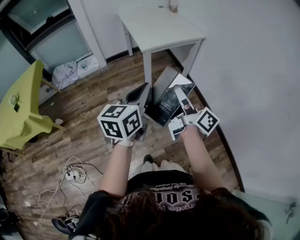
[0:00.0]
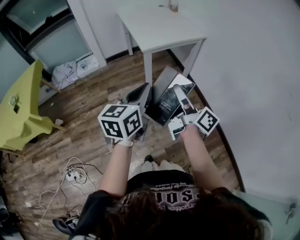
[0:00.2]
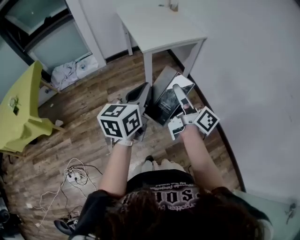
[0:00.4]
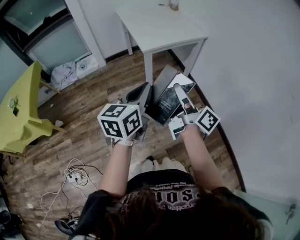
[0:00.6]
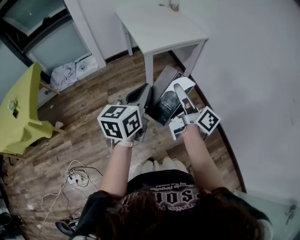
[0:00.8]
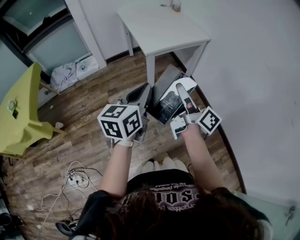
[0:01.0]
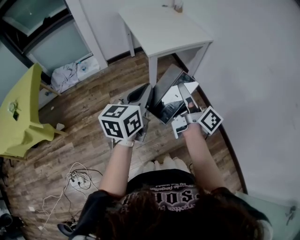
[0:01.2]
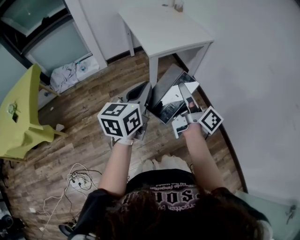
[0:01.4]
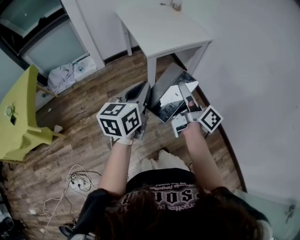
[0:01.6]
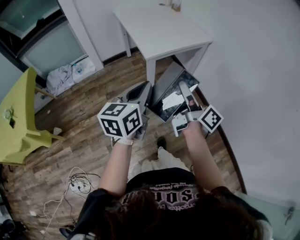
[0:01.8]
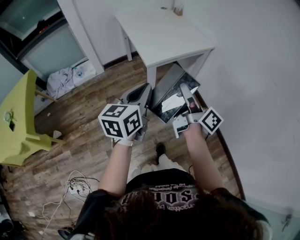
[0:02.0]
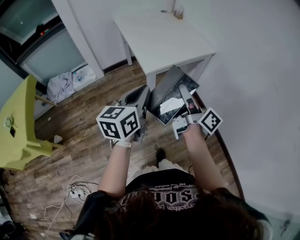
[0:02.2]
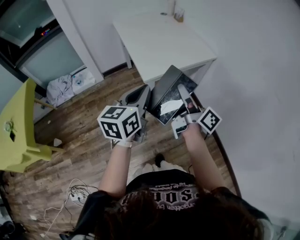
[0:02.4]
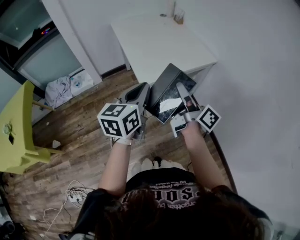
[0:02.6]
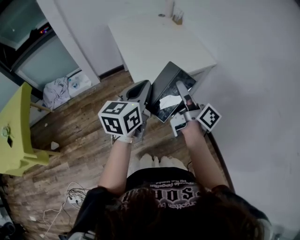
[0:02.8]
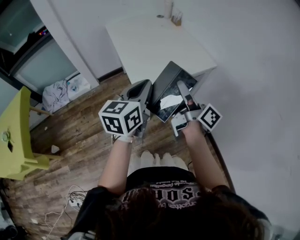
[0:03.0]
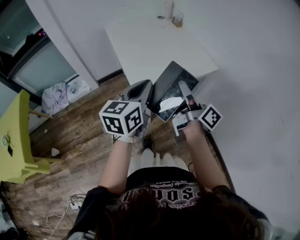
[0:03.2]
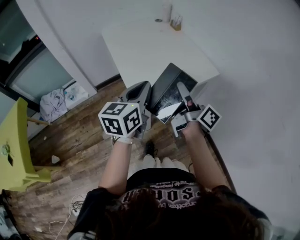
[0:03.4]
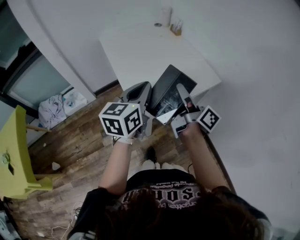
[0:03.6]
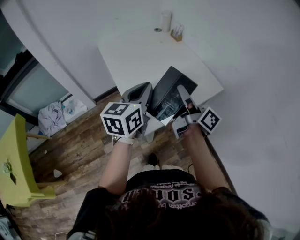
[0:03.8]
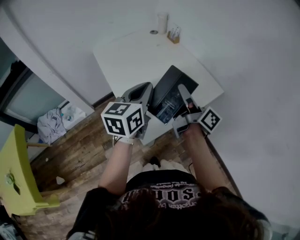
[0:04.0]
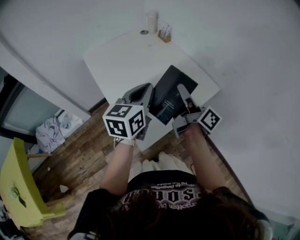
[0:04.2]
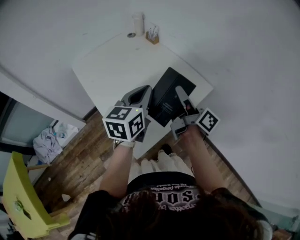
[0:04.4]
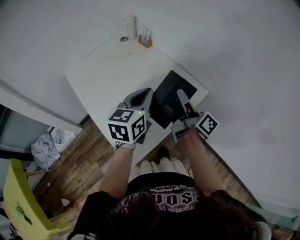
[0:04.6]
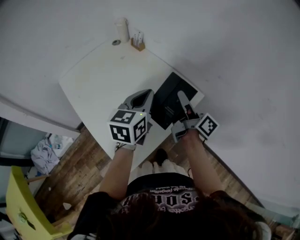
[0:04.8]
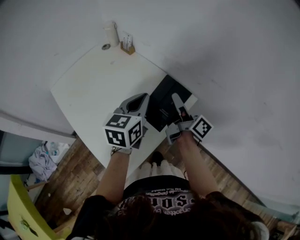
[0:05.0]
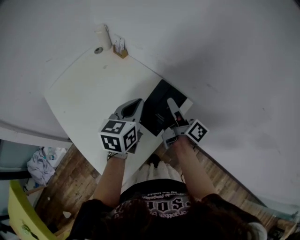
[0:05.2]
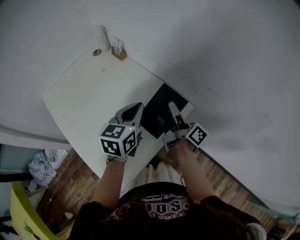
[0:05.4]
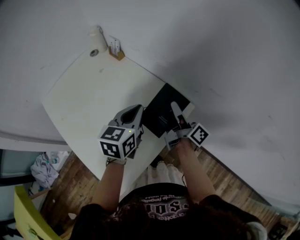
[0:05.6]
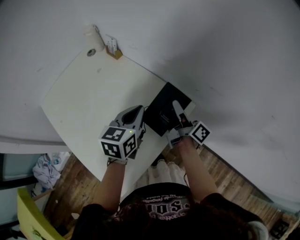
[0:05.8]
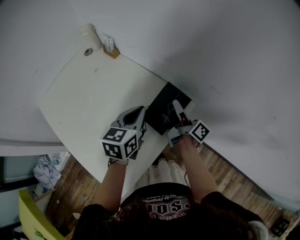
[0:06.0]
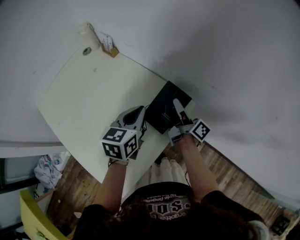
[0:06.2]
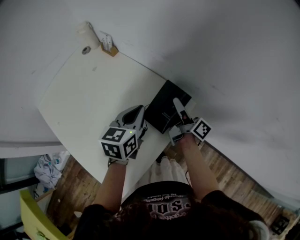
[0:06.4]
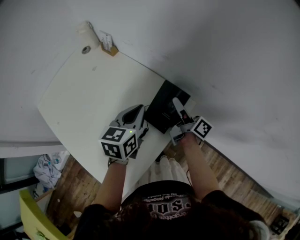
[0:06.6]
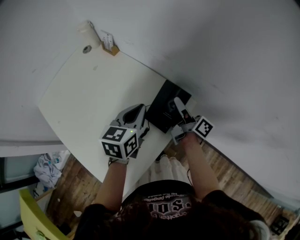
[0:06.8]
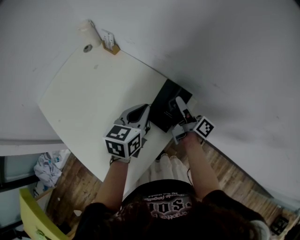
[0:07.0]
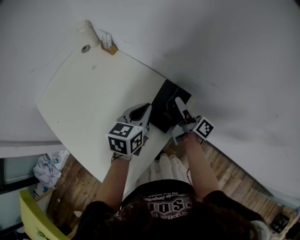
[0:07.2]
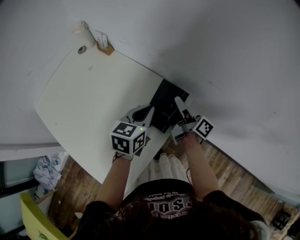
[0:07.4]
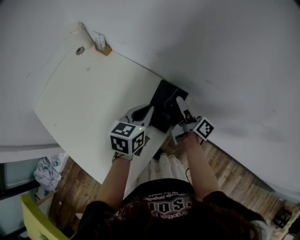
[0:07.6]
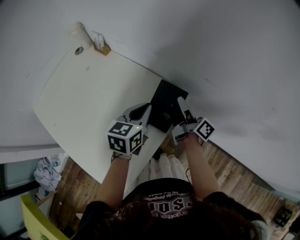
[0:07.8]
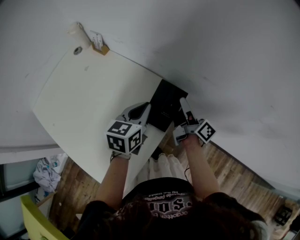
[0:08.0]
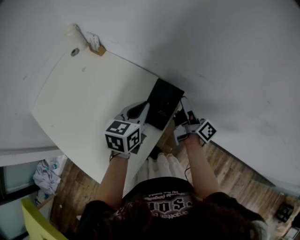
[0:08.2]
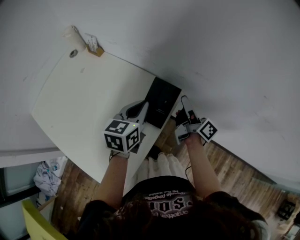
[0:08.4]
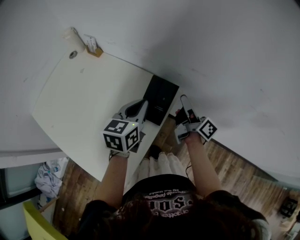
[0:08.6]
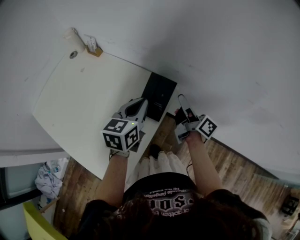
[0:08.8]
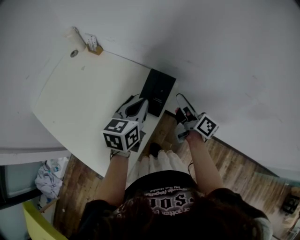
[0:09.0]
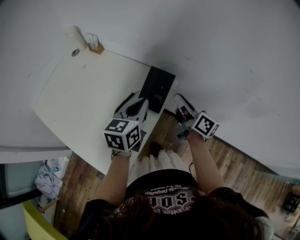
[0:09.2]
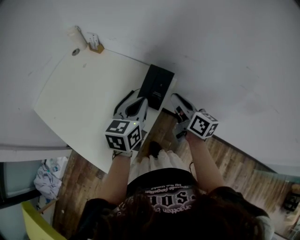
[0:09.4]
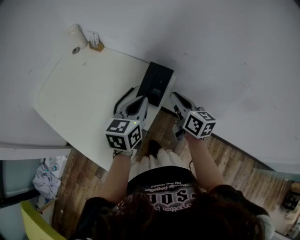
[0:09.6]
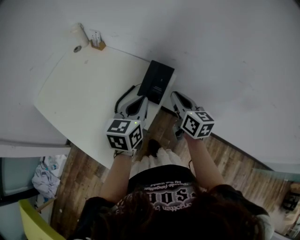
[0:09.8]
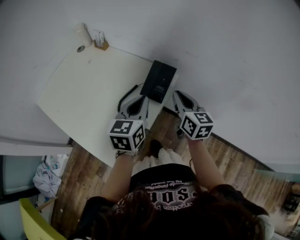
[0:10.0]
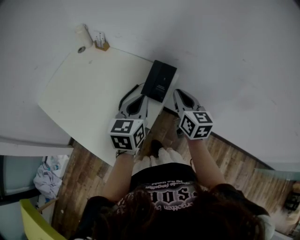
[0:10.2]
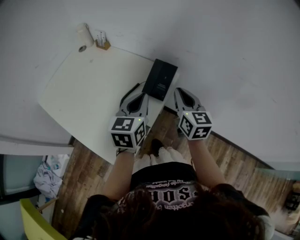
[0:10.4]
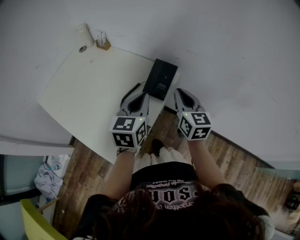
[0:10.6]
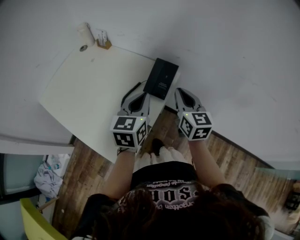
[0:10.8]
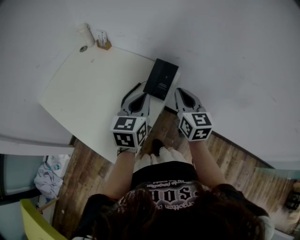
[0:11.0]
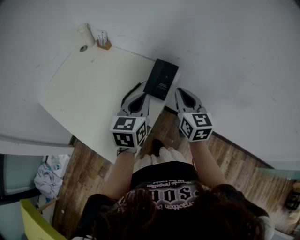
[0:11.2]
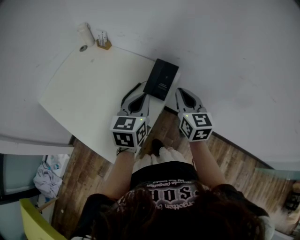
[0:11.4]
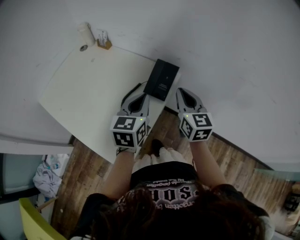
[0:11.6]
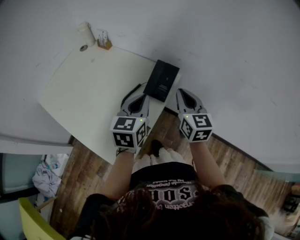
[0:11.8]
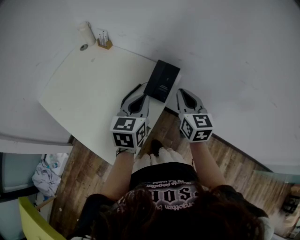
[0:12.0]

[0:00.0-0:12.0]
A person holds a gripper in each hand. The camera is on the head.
0:00.0 to 0:01.6: The right gripper heads forward, covering approximately 10 cm. The left gripper heads forward and to the left, covering roughly 10 cm.
0:01.6 to 0:03.0: The two grippers go approximately 30 cm forward.
0:03.0 to 0:04.4: The two grippers go about 30 cm forward.
0:04.4 to 0:06.0: The left gripper shifts some 20 cm forward, to the right and downward; the right gripper shifts some 25 cm forward, downward and to the right.
0:06.0 to 0:07.6: The left gripper moves to the right, approximately 5 cm.
0:07.6 to 0:09.0: The right gripper moves backward, upward and to the right, about 10 cm, and closes up; the left gripper moves backward, some 5 cm.
0:09.0 to 0:10.4: The left gripper moves backward, roughly 5 cm, while the right gripper moves backward and upward, roughly 10 cm, rotates around the line of its fingers by about 50 degrees, counterclockwise from behind, and closes up.
0:10.4 to 0:12.0: The grippers make only small movements.

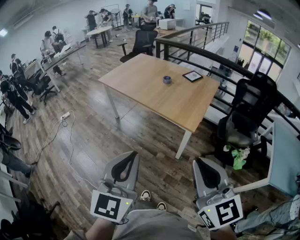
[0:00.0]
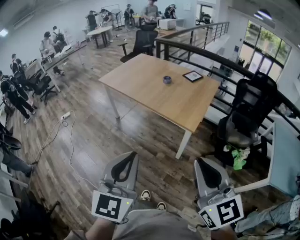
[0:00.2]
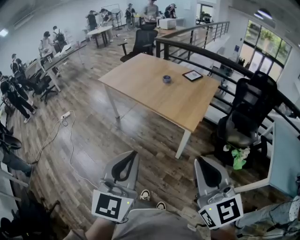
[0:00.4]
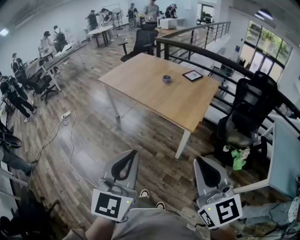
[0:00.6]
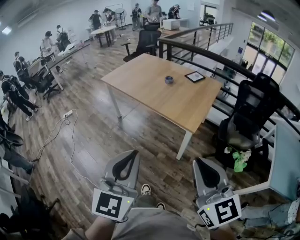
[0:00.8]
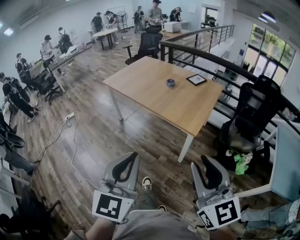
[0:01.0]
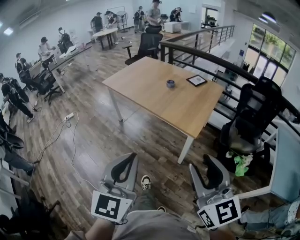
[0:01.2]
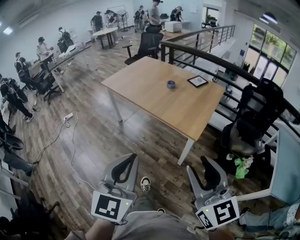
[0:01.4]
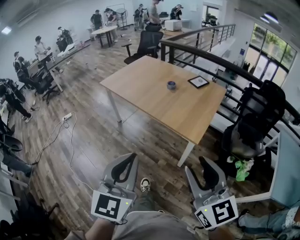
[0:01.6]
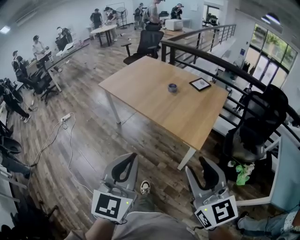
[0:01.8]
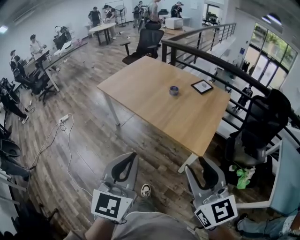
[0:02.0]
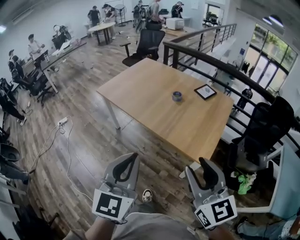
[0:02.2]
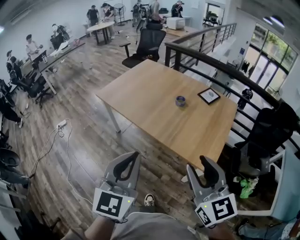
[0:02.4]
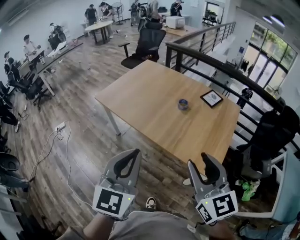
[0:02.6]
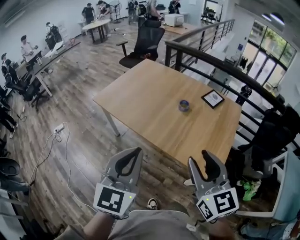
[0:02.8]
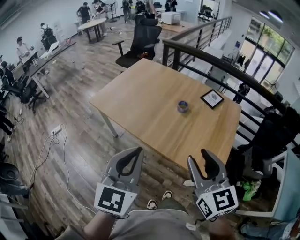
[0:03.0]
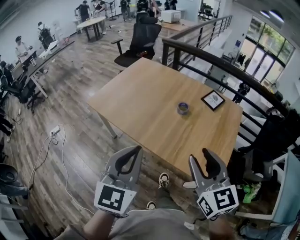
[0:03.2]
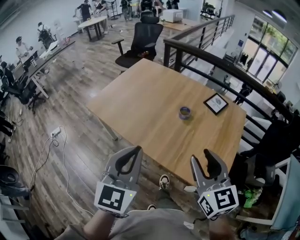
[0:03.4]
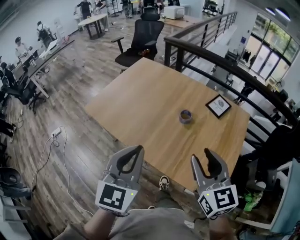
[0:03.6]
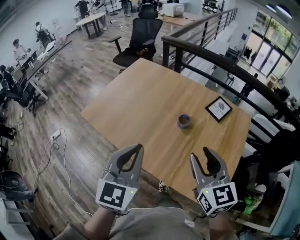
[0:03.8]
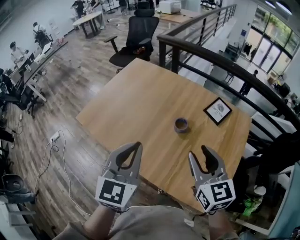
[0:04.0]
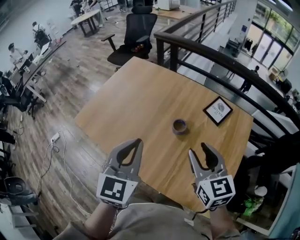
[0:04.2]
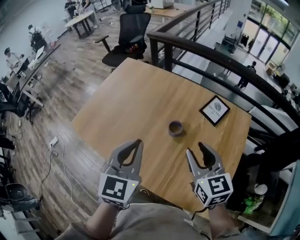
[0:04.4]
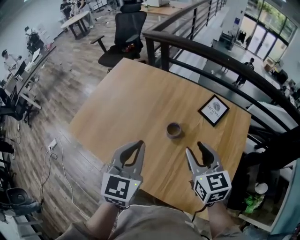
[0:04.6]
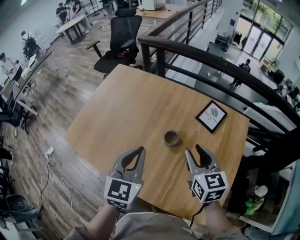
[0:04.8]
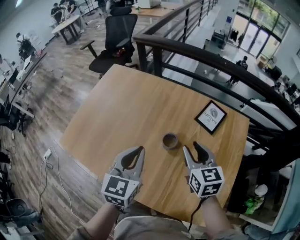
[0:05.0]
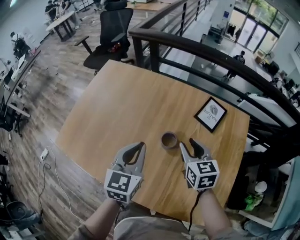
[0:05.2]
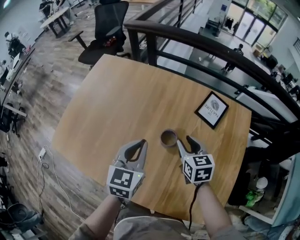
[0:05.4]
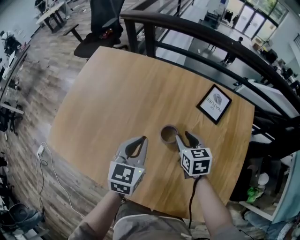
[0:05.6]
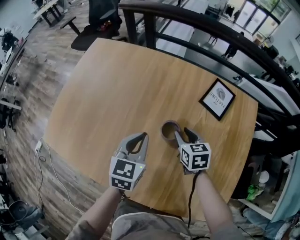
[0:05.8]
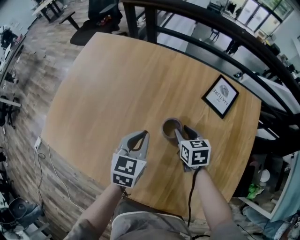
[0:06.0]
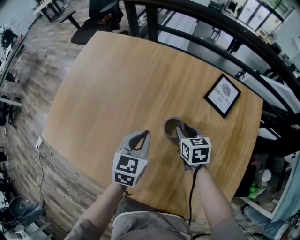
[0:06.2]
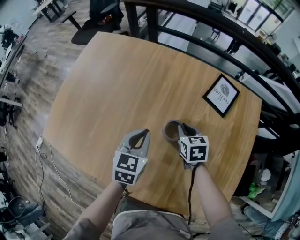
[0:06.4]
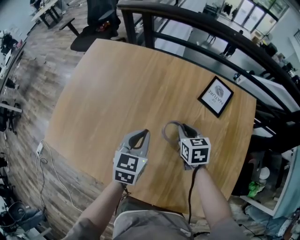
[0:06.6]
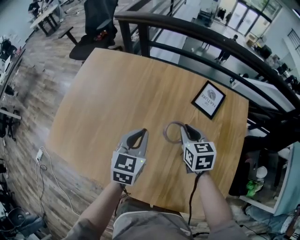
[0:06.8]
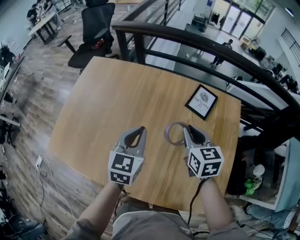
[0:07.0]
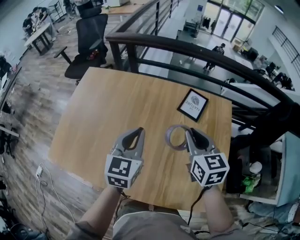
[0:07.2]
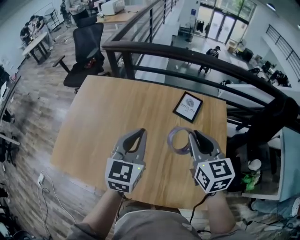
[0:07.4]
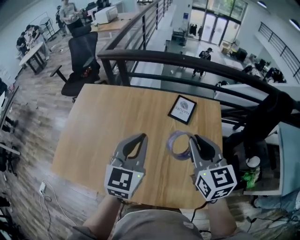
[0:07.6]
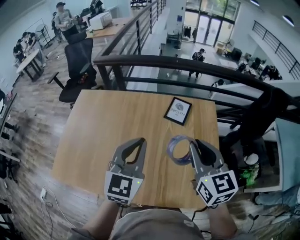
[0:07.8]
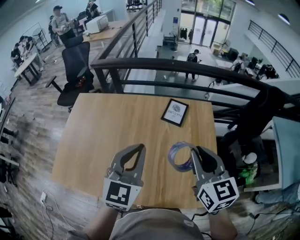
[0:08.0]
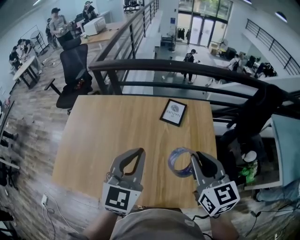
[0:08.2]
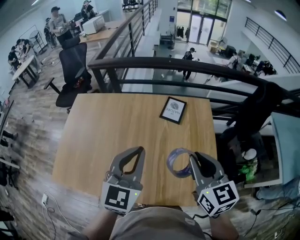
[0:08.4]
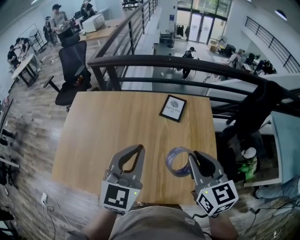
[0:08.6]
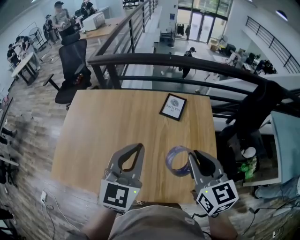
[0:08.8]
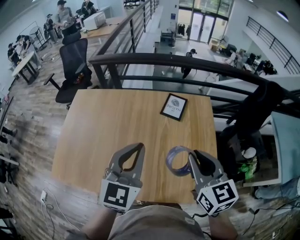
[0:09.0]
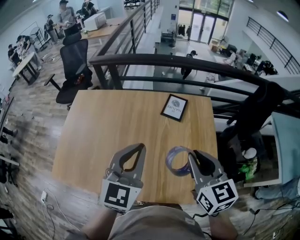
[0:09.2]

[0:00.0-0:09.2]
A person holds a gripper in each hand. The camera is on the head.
0:00.0 to 0:01.6: The grippers both shift forward by approximately 10 cm. The right gripper opens.
0:01.6 to 0:03.0: The pair of grippers is taken forward, approximately 40 cm.
0:03.0 to 0:04.6: The grippers both shift forward by about 35 cm.
0:04.6 to 0:06.2: The two grippers go some 30 cm downward and forward. The right gripper swivels approximately 30 degrees; the left gripper swivels about 20 degrees.
0:06.2 to 0:07.6: The grippers both shift upward by roughly 35 cm. The right gripper angles its fingers upward, by some 30 degrees. The left gripper turns by some 30 degrees.
0:07.6 to 0:09.2: The grippers both shift backward by some 5 cm.

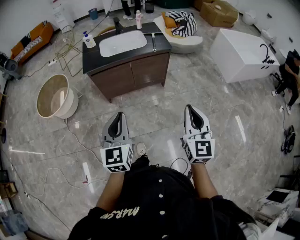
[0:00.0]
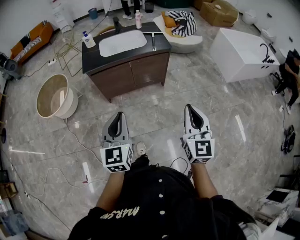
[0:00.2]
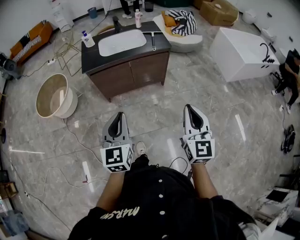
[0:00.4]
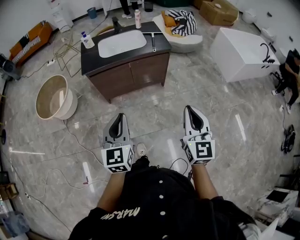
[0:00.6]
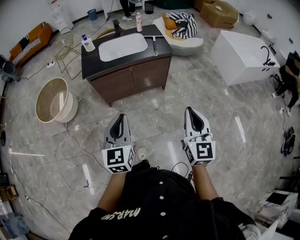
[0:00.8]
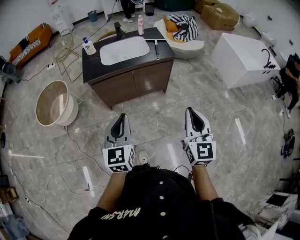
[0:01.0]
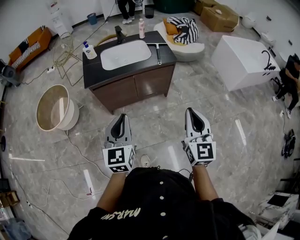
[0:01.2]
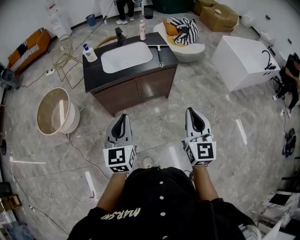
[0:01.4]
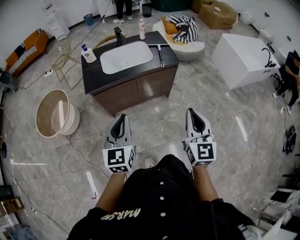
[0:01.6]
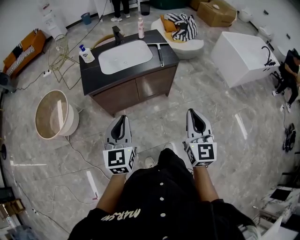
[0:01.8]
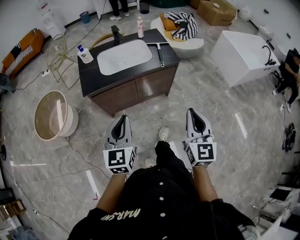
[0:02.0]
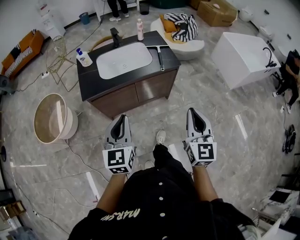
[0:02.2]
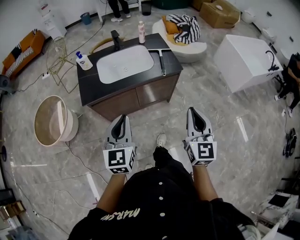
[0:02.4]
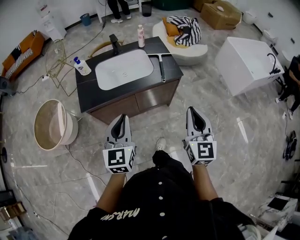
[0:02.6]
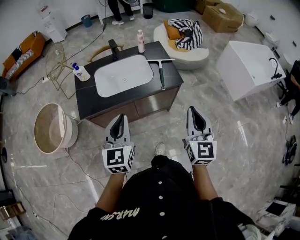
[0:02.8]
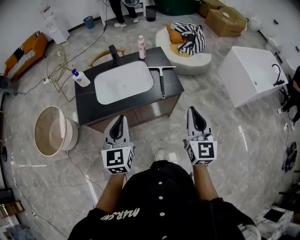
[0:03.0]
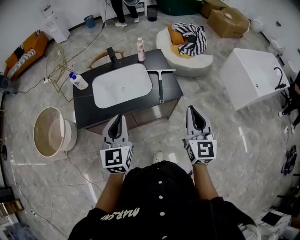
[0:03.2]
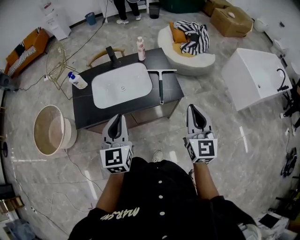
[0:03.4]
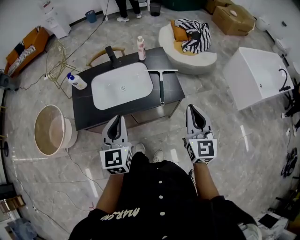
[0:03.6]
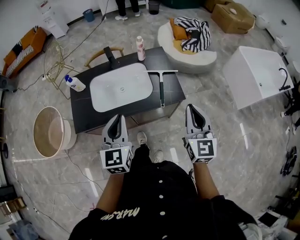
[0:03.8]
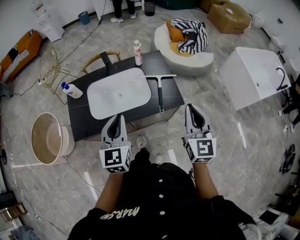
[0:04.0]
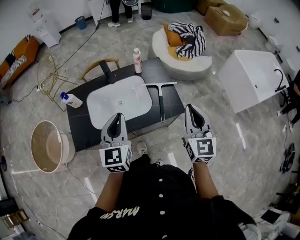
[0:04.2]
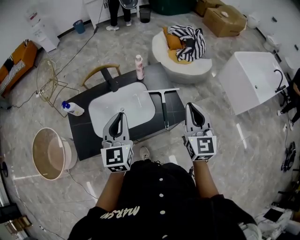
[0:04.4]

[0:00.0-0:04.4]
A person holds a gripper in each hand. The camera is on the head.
0:00.0 to 0:01.4: Both grippers travel together forward, approximately 15 cm.
0:01.4 to 0:03.0: Both grippers move forward, approximately 30 cm.
0:03.0 to 0:04.4: The two grippers go roughly 25 cm forward.
